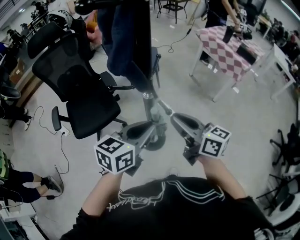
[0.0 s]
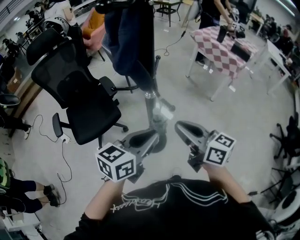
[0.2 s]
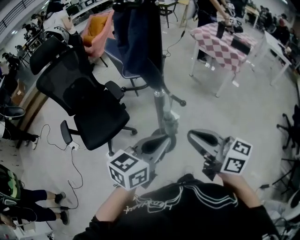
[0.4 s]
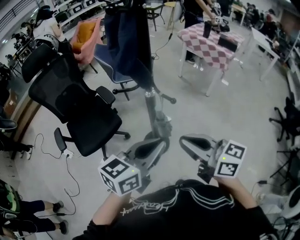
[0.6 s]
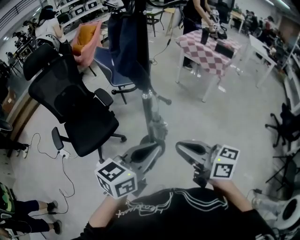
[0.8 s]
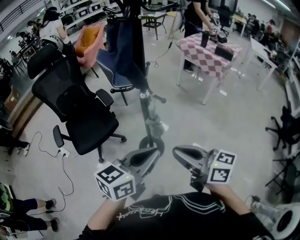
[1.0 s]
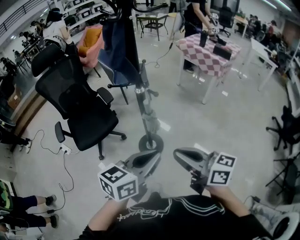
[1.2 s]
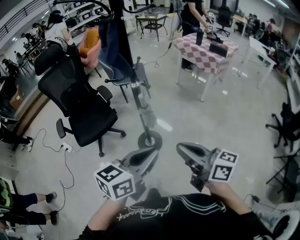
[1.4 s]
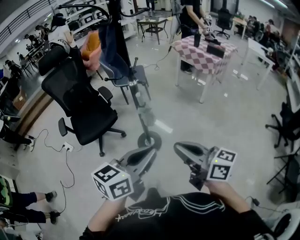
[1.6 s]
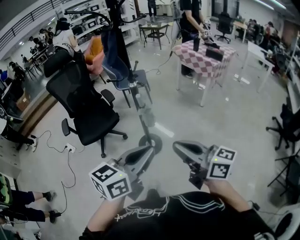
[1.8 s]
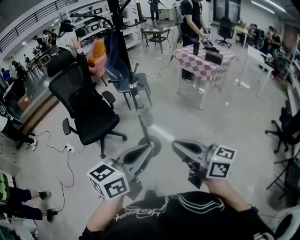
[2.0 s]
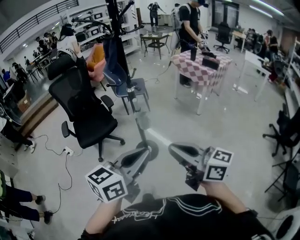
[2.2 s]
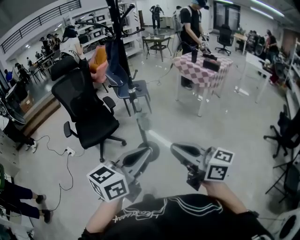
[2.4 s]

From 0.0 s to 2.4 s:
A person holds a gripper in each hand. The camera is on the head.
From 0.0 s to 1.2 s: Both grippers move backward, approximately 20 cm.
From 1.2 s to 2.4 s: The right gripper goes some 20 cm backward, upward and to the right. Meanwhile the left gripper heads backward and upward, covering about 20 cm.

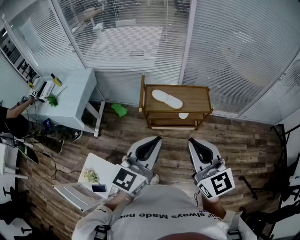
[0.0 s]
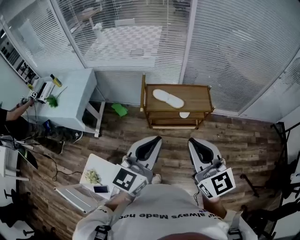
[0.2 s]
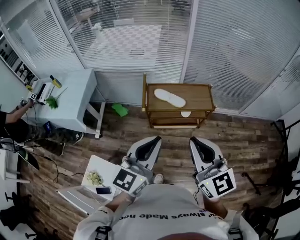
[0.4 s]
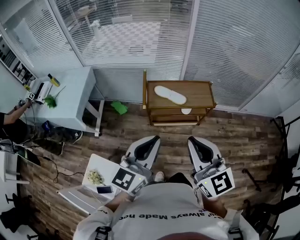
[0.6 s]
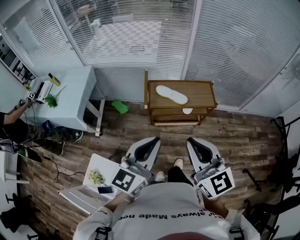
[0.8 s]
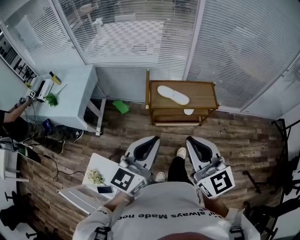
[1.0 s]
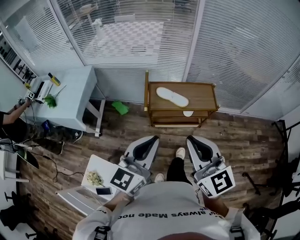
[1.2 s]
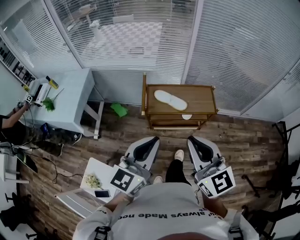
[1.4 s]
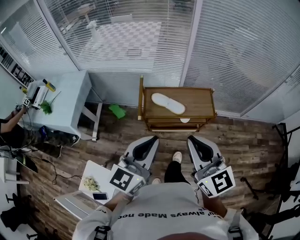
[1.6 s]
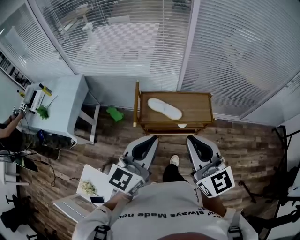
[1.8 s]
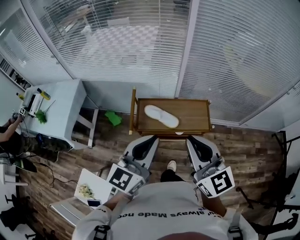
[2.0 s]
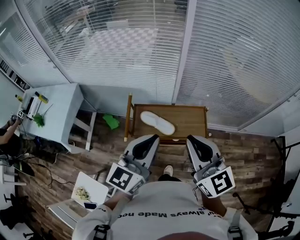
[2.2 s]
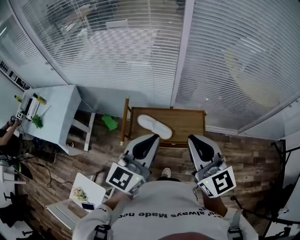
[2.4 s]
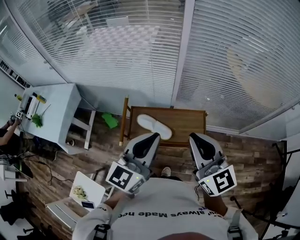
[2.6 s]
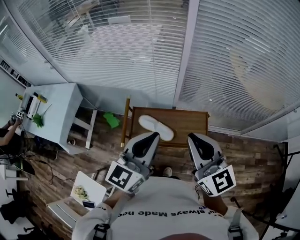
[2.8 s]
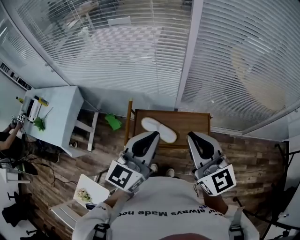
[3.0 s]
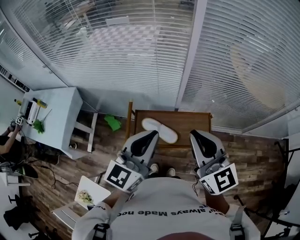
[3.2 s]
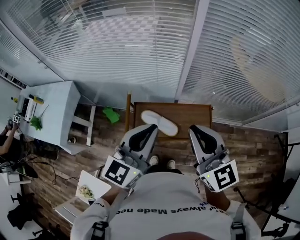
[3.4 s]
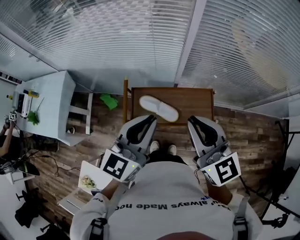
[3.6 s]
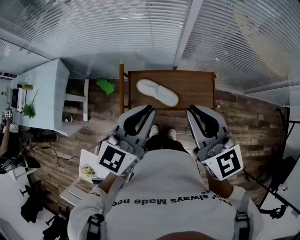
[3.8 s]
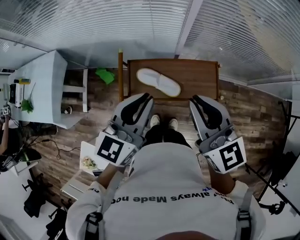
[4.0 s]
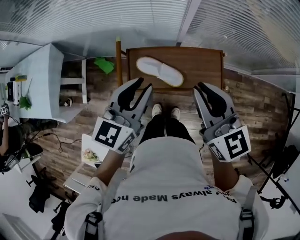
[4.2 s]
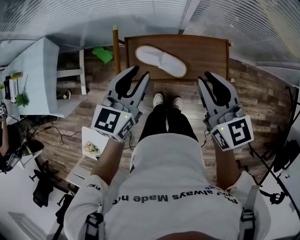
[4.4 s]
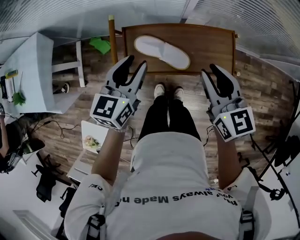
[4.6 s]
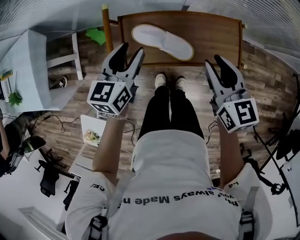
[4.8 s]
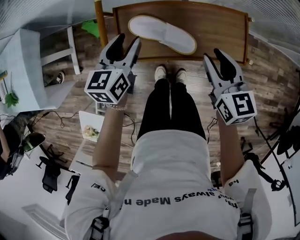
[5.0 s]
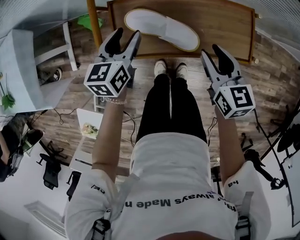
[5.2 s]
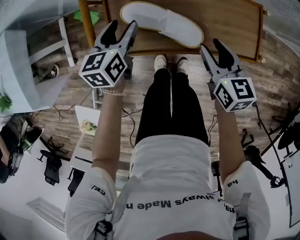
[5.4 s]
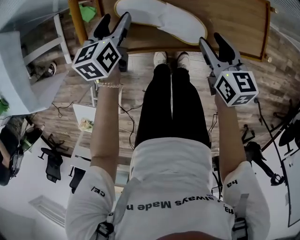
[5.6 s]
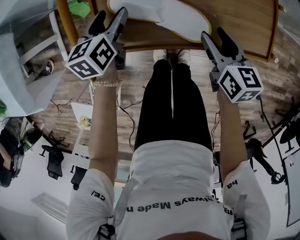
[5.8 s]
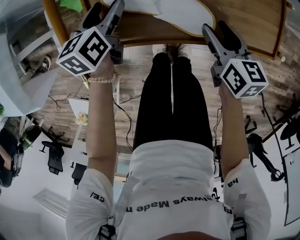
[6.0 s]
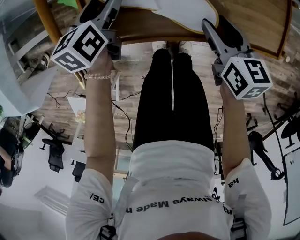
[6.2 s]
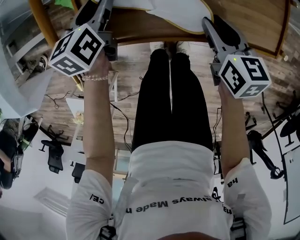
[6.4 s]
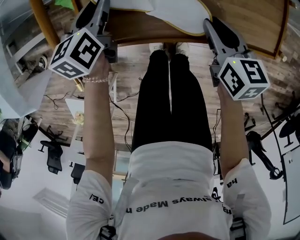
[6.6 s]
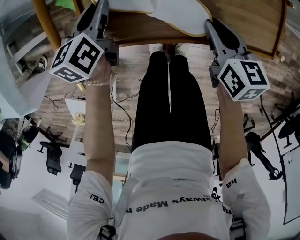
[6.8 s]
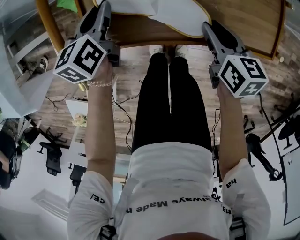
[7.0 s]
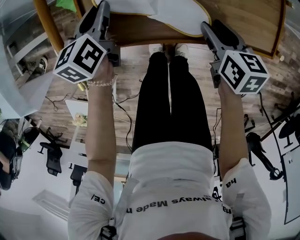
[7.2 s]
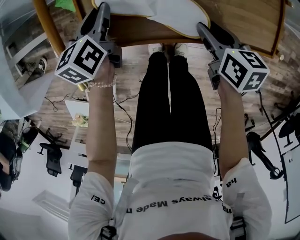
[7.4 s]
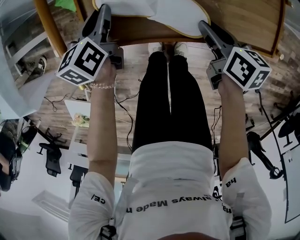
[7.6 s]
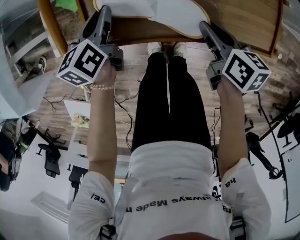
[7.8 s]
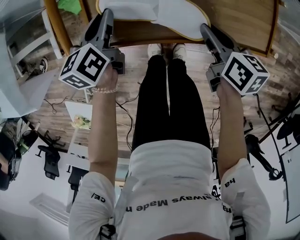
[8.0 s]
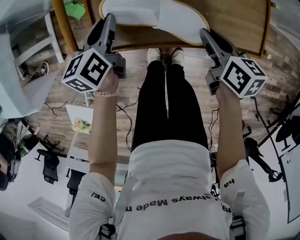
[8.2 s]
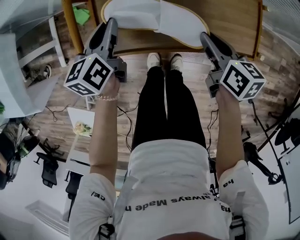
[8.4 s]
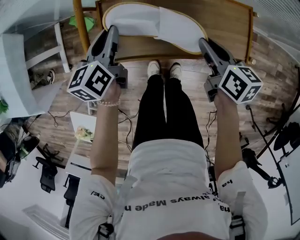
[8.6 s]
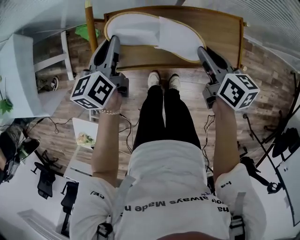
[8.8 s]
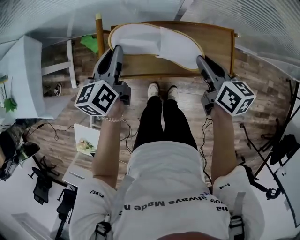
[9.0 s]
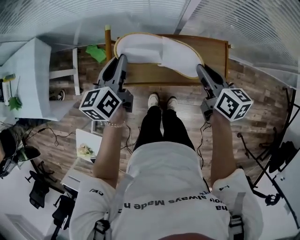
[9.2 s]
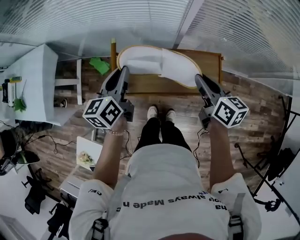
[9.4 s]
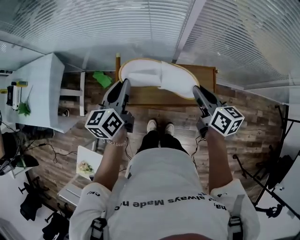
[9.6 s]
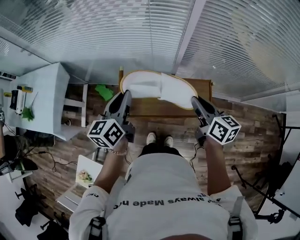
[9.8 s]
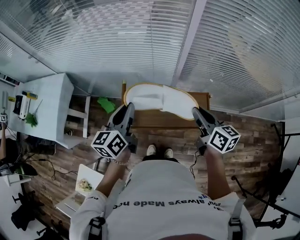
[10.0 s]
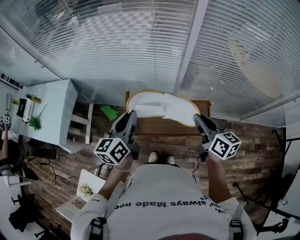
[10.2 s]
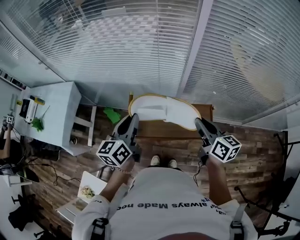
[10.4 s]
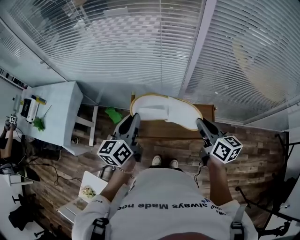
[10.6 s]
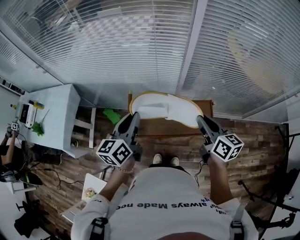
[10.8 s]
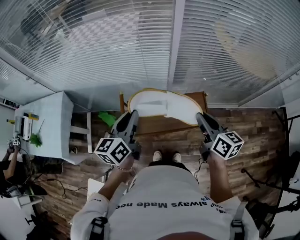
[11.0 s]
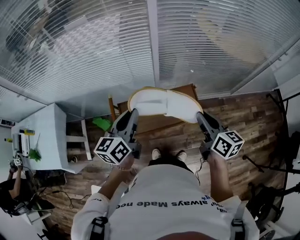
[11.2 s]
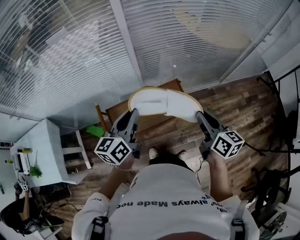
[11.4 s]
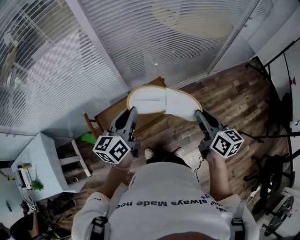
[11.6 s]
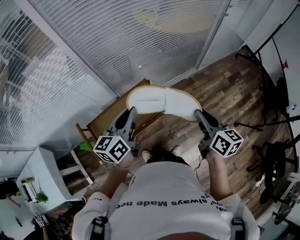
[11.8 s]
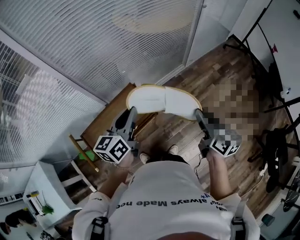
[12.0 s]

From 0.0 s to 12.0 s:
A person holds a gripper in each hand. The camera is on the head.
From 0.0 s to 1.6 s: The grippers both shift forward by approximately 10 cm.
From 1.6 s to 3.0 s: The right gripper travels forward by about 25 cm. Meanwhile the left gripper goes approximately 30 cm forward and to the right.
From 3.0 s to 4.4 s: Both grippers move downward, approximately 20 cm. The left gripper rotates some 20 degrees, and opens its fingers; the right gripper swivels roughly 20 degrees.
From 4.4 s to 6.0 s: The grippers both shift downward by roughly 40 cm. The right gripper rotates some 30 degrees, and opens, while the left gripper changes its angle by roughly 30 degrees, and opens.
From 6.0 s to 7.6 s: The left gripper closes; the right gripper closes up.
From 7.6 s to 9.0 s: Both grippers move upward, about 25 cm.
From 9.0 s to 10.4 s: The two grippers go approximately 25 cm upward.
From 10.4 s to 12.0 s: The pair of grippers is taken roughly 40 cm. The left gripper changes its angle by about 50 degrees; the right gripper swivels roughly 50 degrees.

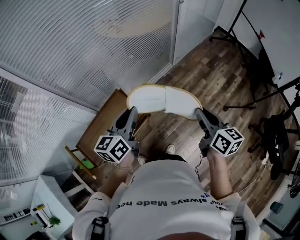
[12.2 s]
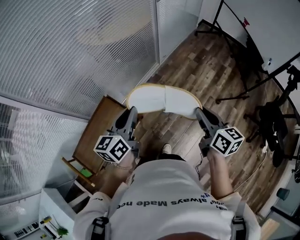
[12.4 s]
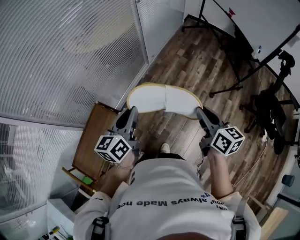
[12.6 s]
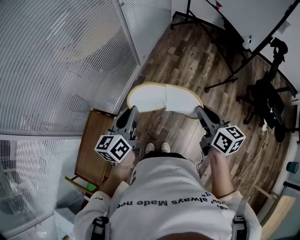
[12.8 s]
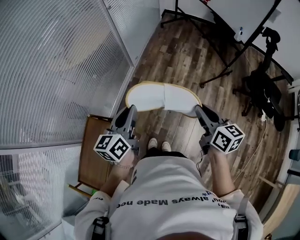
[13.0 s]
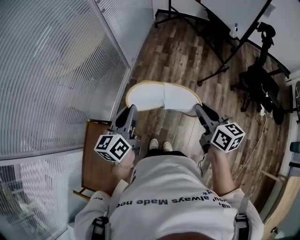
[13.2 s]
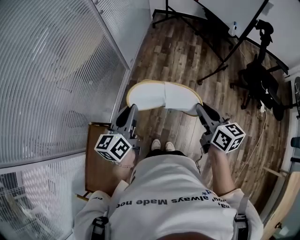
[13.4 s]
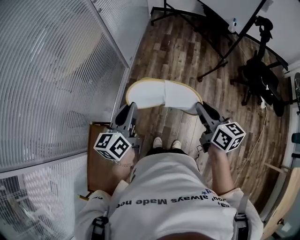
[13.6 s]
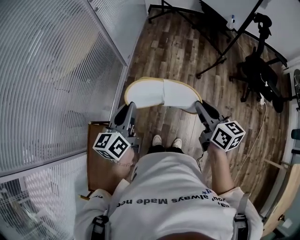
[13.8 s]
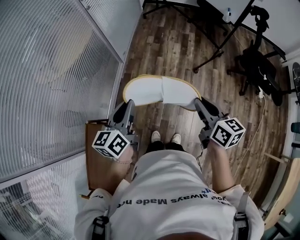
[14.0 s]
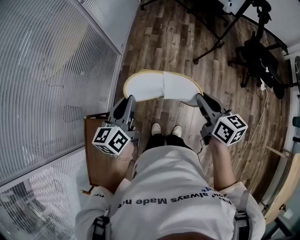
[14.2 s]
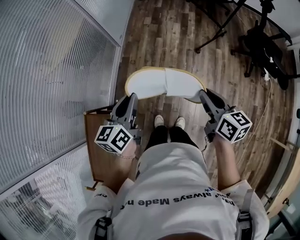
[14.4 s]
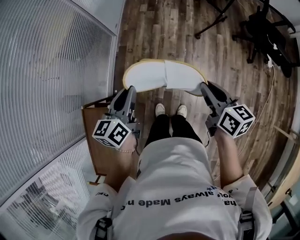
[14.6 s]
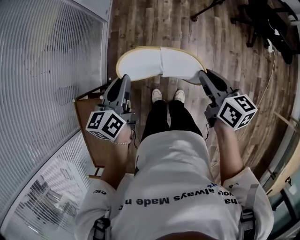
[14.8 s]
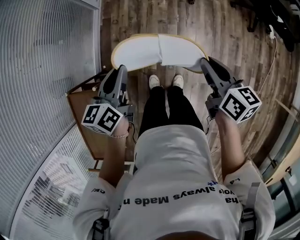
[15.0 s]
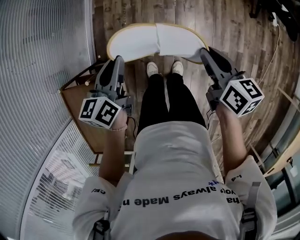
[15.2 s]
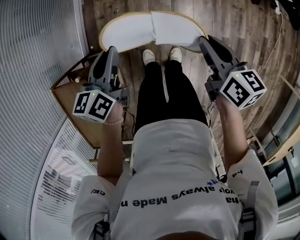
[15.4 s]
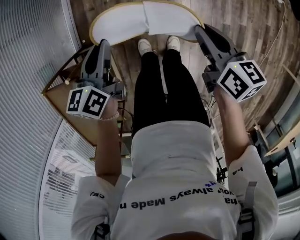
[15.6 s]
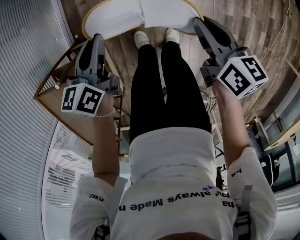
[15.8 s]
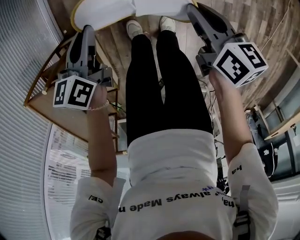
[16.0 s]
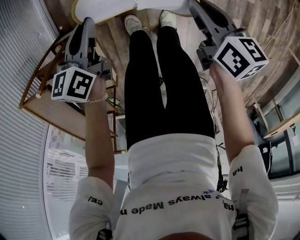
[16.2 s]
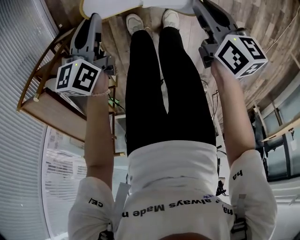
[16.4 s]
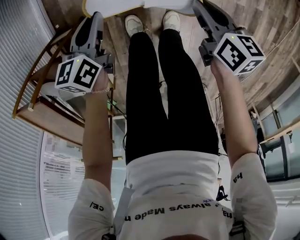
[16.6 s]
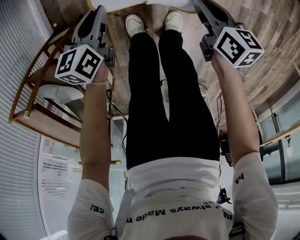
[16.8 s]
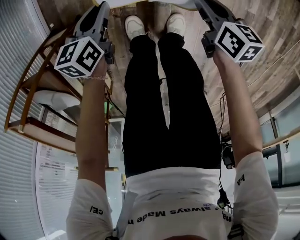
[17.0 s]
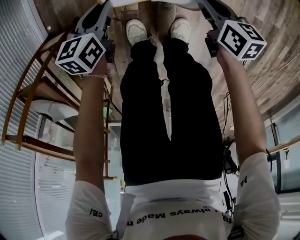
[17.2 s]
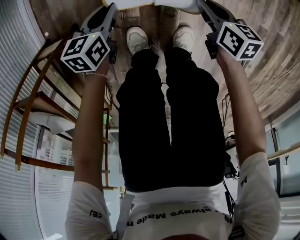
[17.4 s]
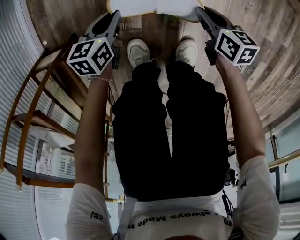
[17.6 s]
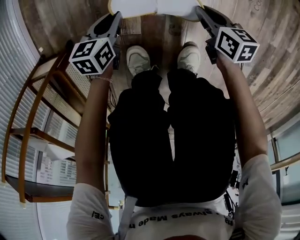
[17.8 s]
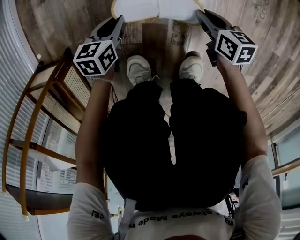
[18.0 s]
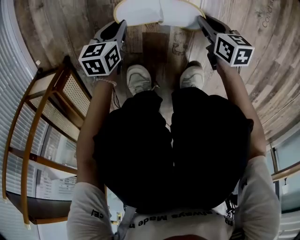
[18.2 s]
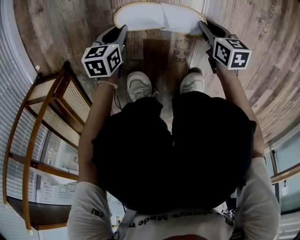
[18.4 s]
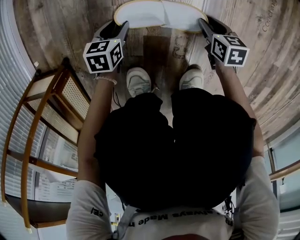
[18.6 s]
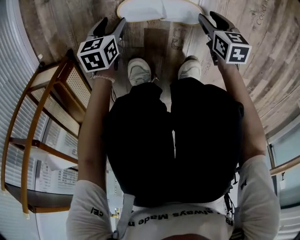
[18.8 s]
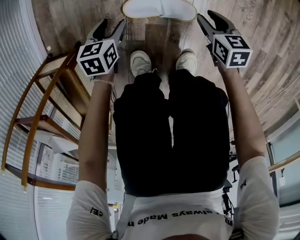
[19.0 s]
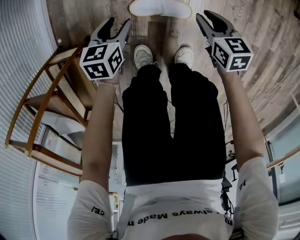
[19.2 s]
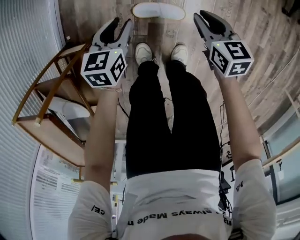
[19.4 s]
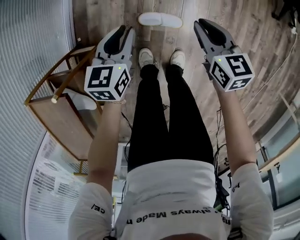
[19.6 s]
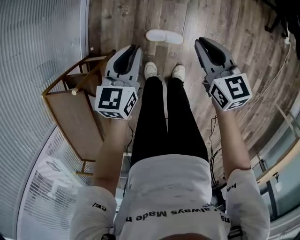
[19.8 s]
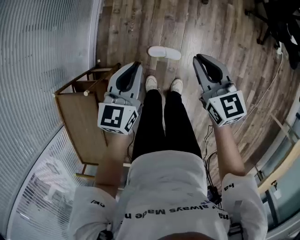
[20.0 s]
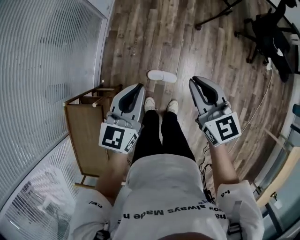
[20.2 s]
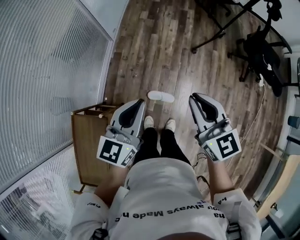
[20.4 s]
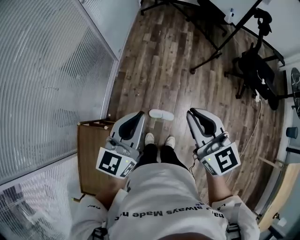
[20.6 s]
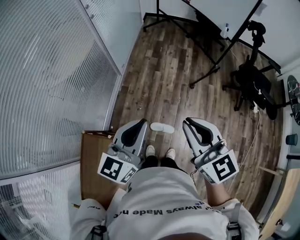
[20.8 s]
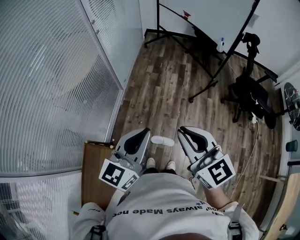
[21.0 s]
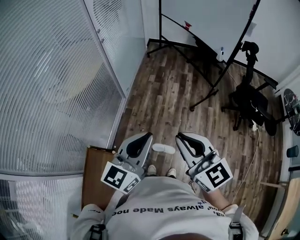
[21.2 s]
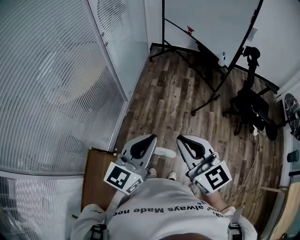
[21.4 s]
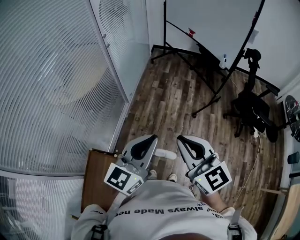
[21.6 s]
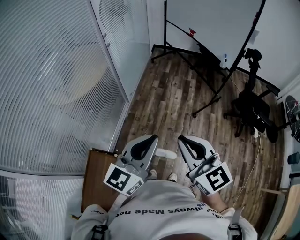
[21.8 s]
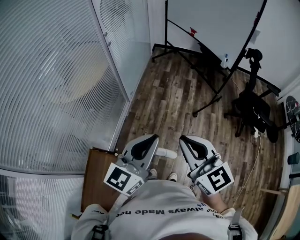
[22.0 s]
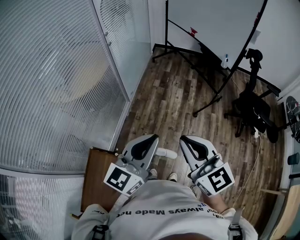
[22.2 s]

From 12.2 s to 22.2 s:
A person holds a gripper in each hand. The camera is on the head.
From 12.2 s to 13.6 s: The right gripper changes place by roughly 15 cm, and swivels some 30 degrees. Meanwhile the left gripper shifts by about 20 cm, and turns by approximately 30 degrees.
From 13.6 s to 15.0 s: The left gripper moves downward, some 20 cm. Meanwhile the right gripper heads downward and to the right, covering some 15 cm.
From 15.0 s to 16.4 s: The grippers both shift downward by approximately 30 cm.
From 16.4 s to 18.0 s: The grippers both shift downward by some 50 cm.
From 18.0 s to 19.4 s: The grippers both shift upward by about 35 cm. The left gripper opens. The right gripper rotates approximately 20 degrees, and opens, then closes again.
From 19.4 s to 20.8 s: The two grippers go about 70 cm upward. The right gripper angles its fingers upward, by some 30 degrees. Meanwhile the left gripper tips its fingers upward by about 40 degrees, and closes up.
From 20.8 s to 22.2 s: The two grippers go roughly 10 cm upward.
